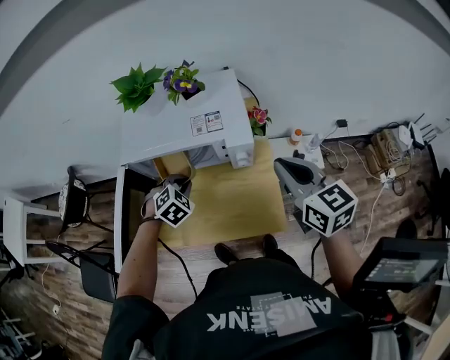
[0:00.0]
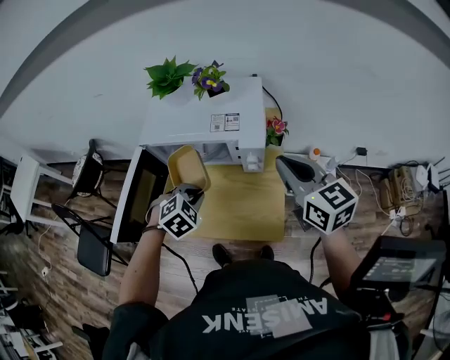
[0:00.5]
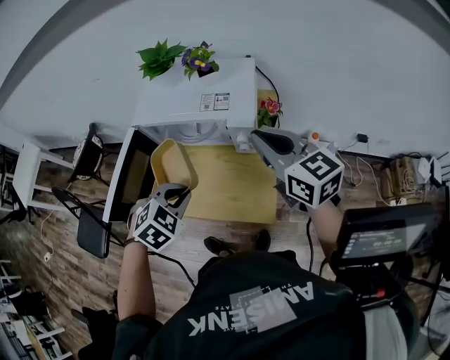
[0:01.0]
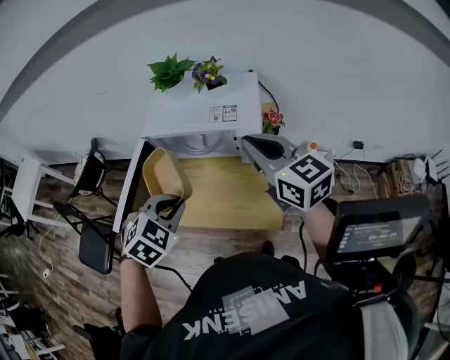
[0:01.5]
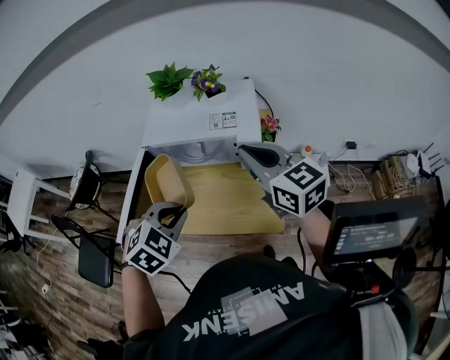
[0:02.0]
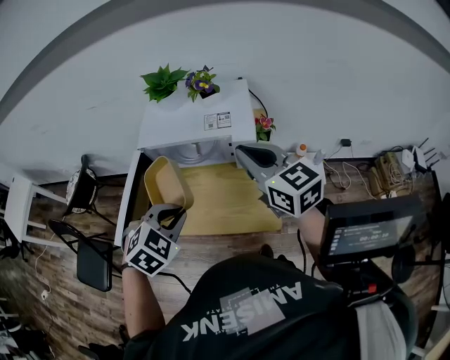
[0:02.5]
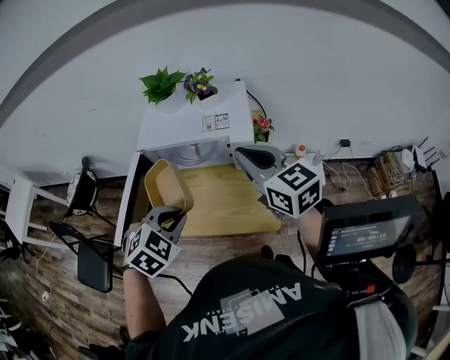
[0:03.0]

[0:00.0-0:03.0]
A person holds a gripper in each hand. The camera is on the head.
0:00.0 to 0:01.5: The right gripper shifts roughly 10 cm upward and to the left, and changes its angle by some 20 degrees; the left gripper goes some 25 cm backward and upward.
0:01.5 to 0:03.0: The grippers move only a little.

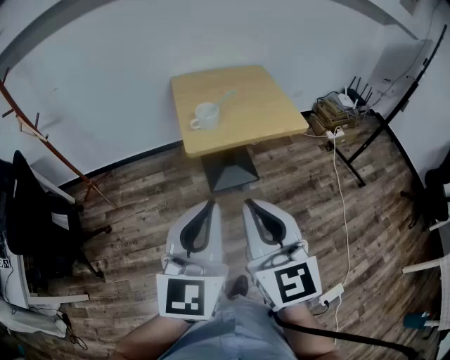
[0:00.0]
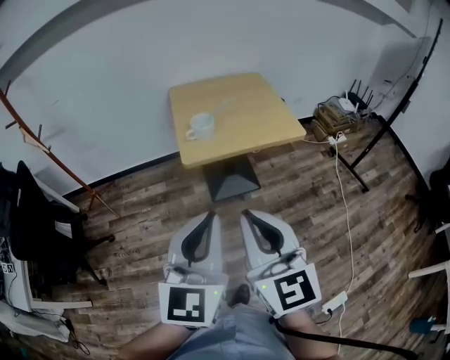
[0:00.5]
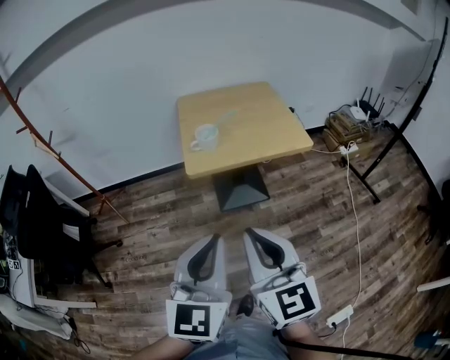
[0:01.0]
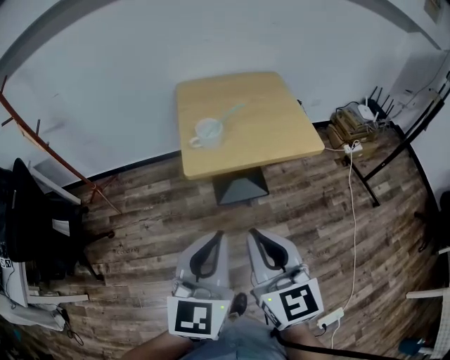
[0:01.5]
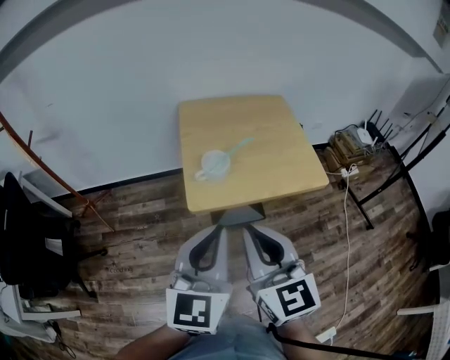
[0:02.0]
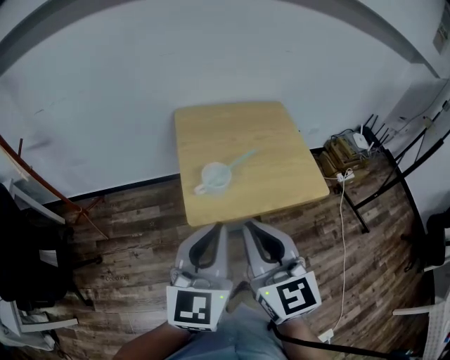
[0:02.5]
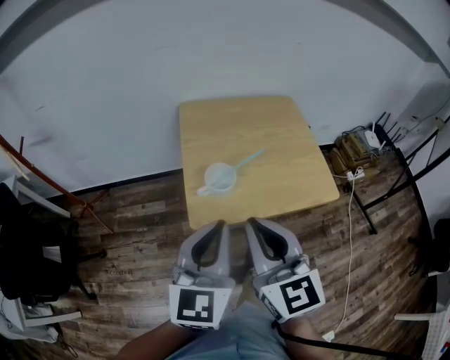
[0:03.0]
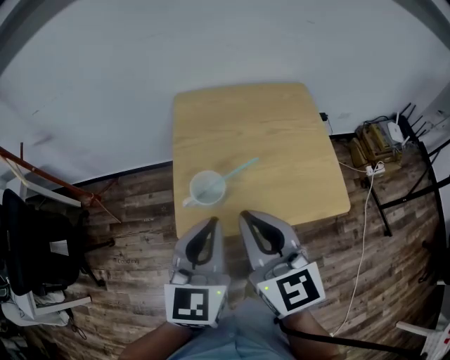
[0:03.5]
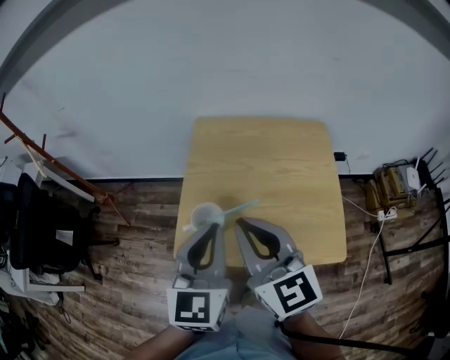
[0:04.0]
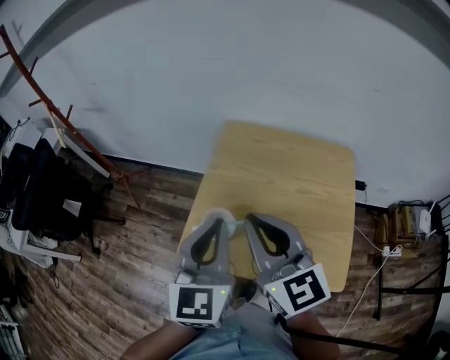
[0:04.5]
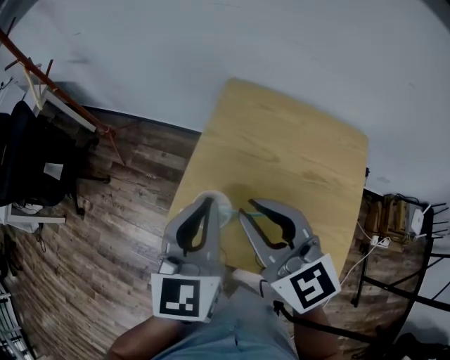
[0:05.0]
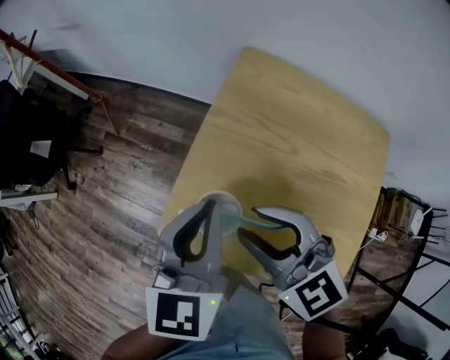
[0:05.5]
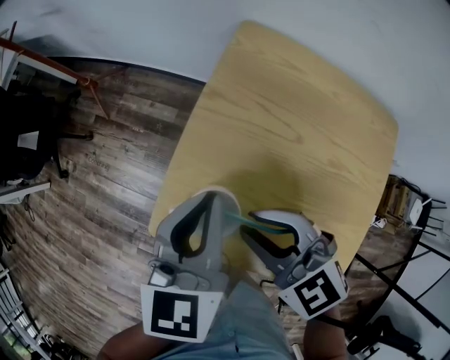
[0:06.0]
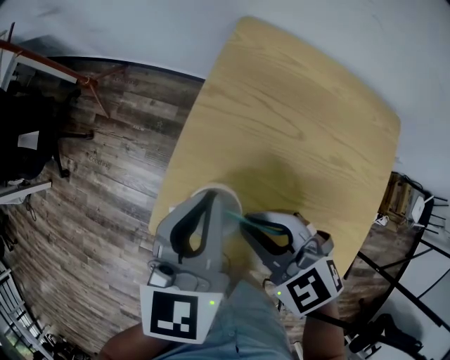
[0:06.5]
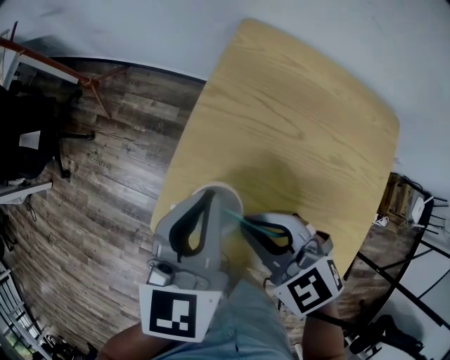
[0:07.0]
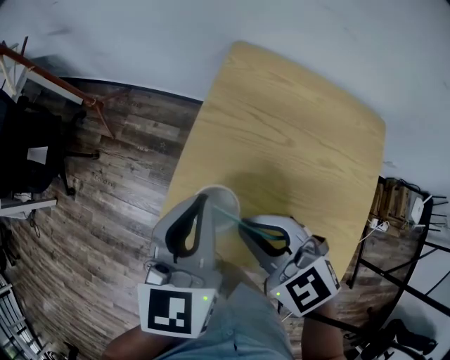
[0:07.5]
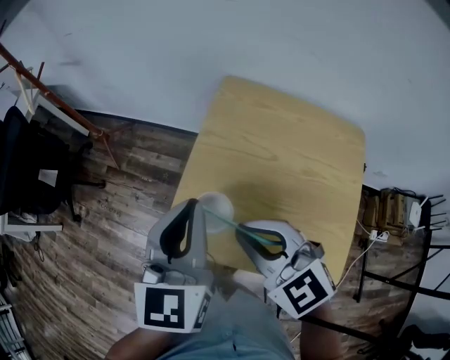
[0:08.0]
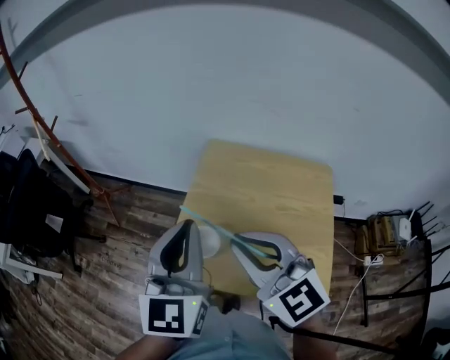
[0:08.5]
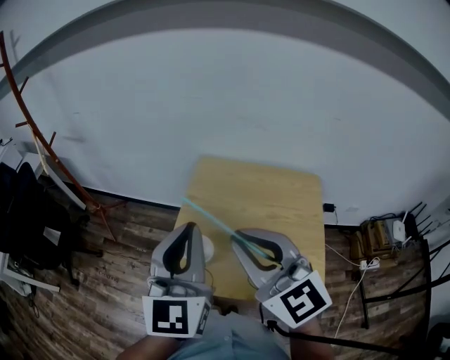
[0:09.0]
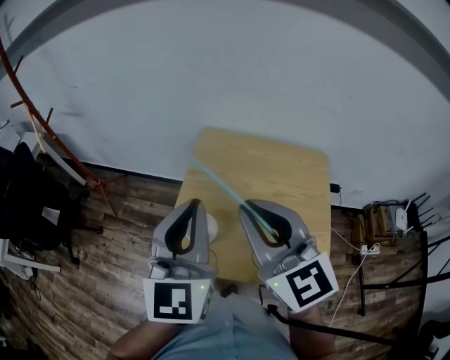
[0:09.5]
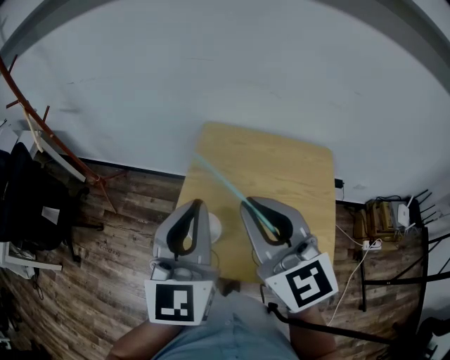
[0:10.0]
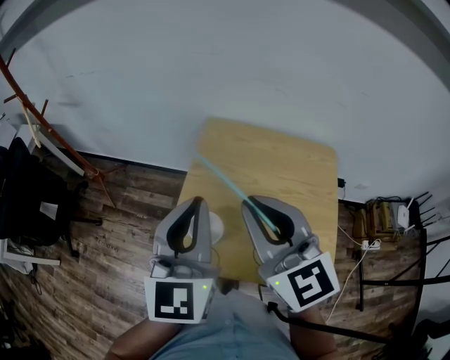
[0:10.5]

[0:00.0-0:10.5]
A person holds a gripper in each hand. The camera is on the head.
0:00.0 to 0:02.0: The two grippers go some 20 cm forward.
0:02.0 to 0:04.0: The right gripper is displaced forward by roughly 25 cm, and swivels approximately 20 degrees, while the left gripper moves forward and to the right, approximately 25 cm, and turns by approximately 20 degrees.
0:04.0 to 0:06.5: The left gripper moves some 20 cm, and rotates some 20 degrees, while the right gripper shifts approximately 20 cm downward, tilts its fingers some 30 degrees downward, and opens and closes again.
0:06.5 to 0:08.5: The two grippers go some 20 cm upward. The left gripper turns by approximately 30 degrees. The right gripper changes its angle by roughly 30 degrees.
0:08.5 to 0:10.5: The right gripper shifts by about 5 cm.

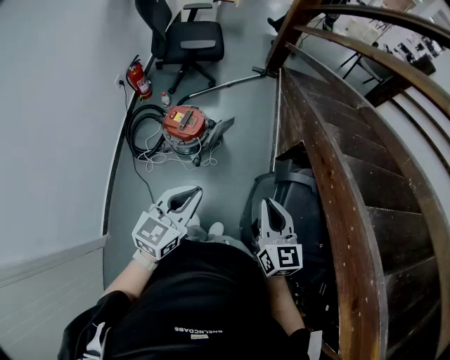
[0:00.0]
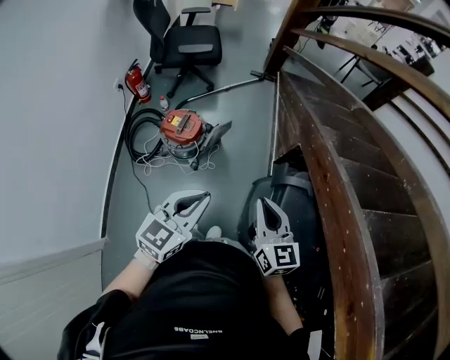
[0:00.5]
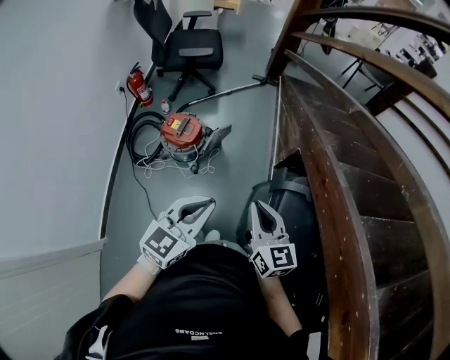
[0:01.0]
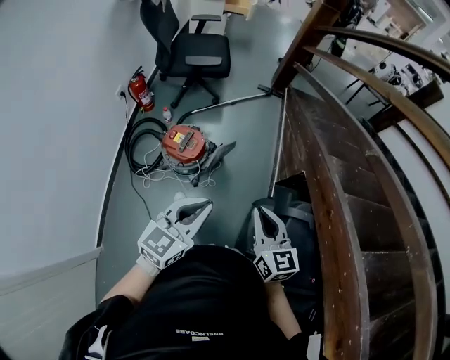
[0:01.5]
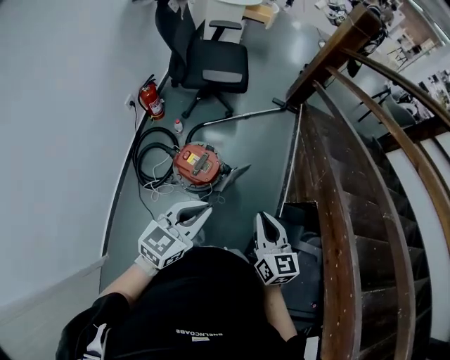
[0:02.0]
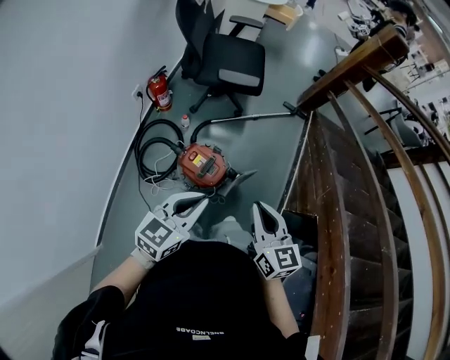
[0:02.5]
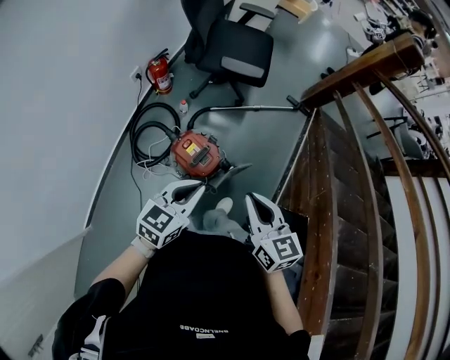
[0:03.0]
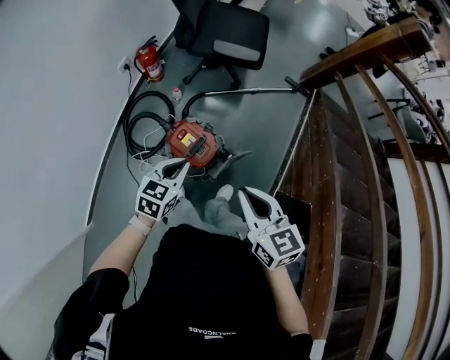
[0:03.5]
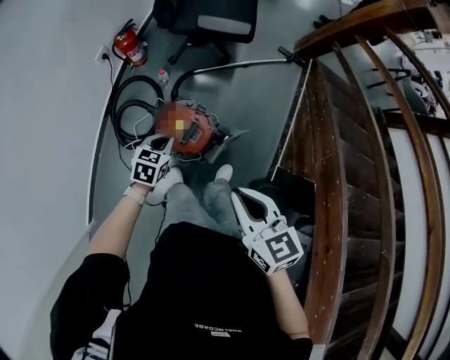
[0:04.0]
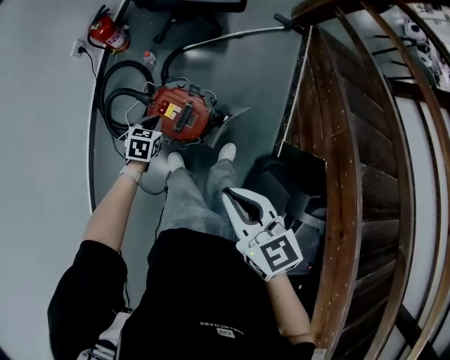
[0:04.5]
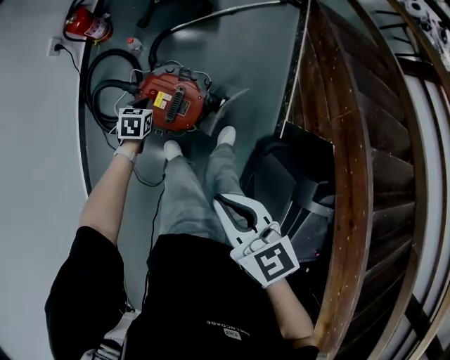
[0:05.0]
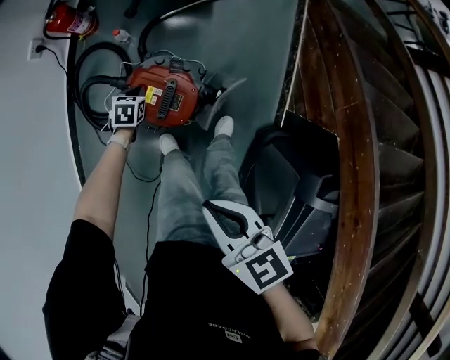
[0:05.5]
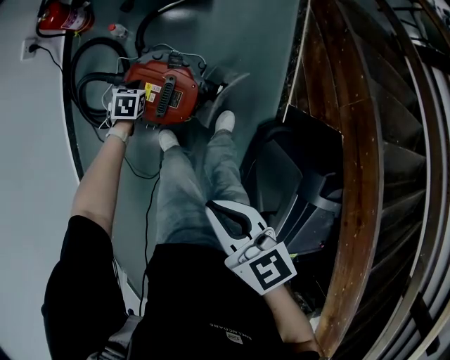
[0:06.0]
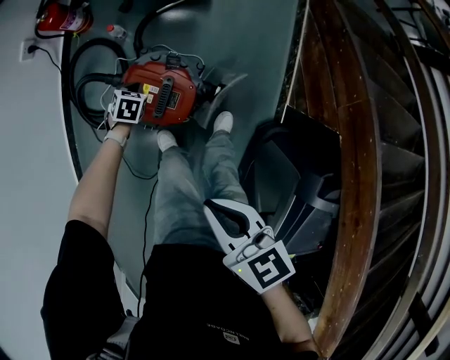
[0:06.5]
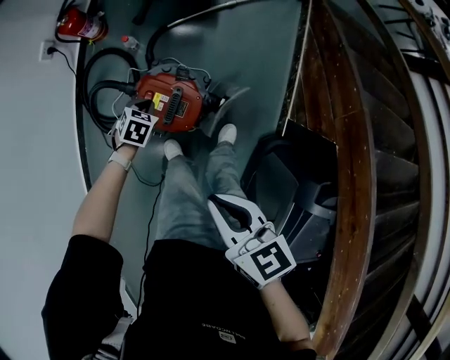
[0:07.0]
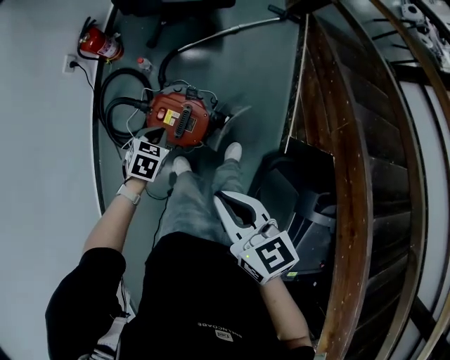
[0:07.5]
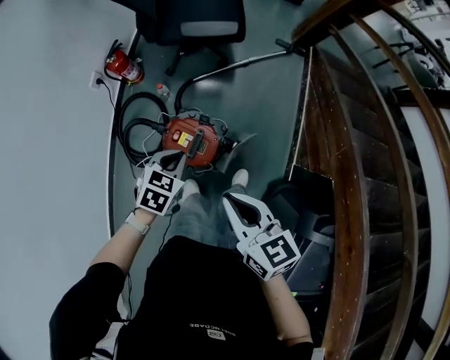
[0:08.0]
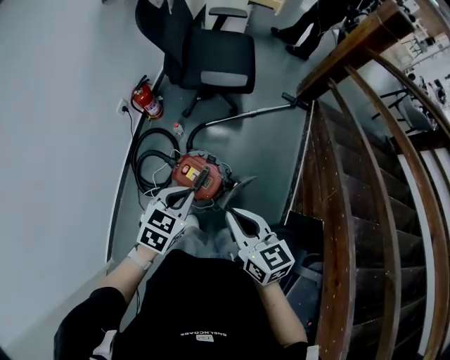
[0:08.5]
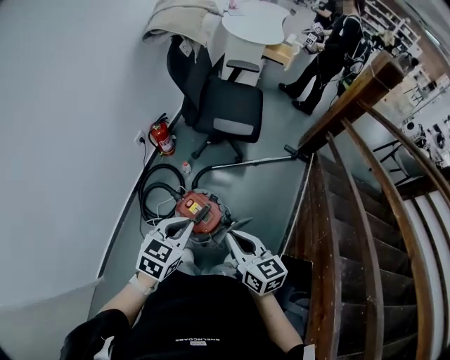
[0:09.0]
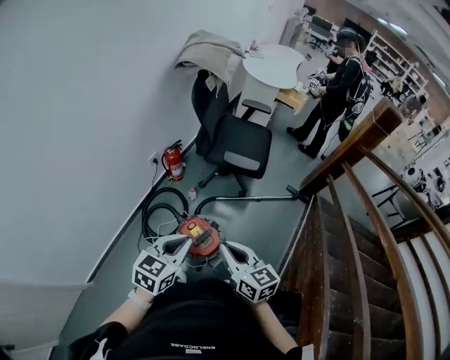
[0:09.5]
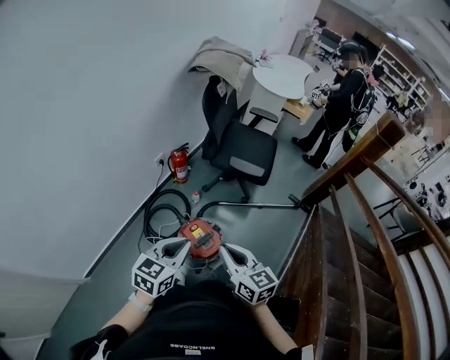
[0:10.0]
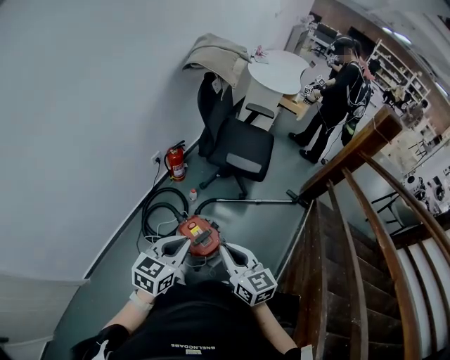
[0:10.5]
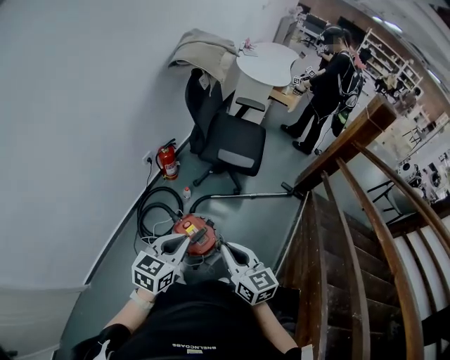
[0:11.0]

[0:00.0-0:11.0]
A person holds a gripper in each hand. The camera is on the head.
0:00.0 to 0:02.0: The two grippers go some 30 cm forward and to the left.
0:02.0 to 0:03.5: The left gripper heads downward, forward and to the left, covering some 25 cm, and swivels roughly 30 degrees, while the right gripper goes approximately 20 cm forward and to the left, and changes its angle by approximately 30 degrees.
0:03.5 to 0:05.5: The right gripper moves downward, roughly 20 cm; the left gripper travels downward by approximately 40 cm, and rotates roughly 30 degrees.
0:05.5 to 0:07.5: The right gripper heads upward, covering approximately 5 cm, while the left gripper moves upward, approximately 20 cm.
0:07.5 to 0:09.0: The right gripper shifts about 15 cm upward, while the left gripper moves upward, about 40 cm, and changes its angle by some 30 degrees.
0:09.0 to 0:11.0: Both grippers move upward, approximately 5 cm.

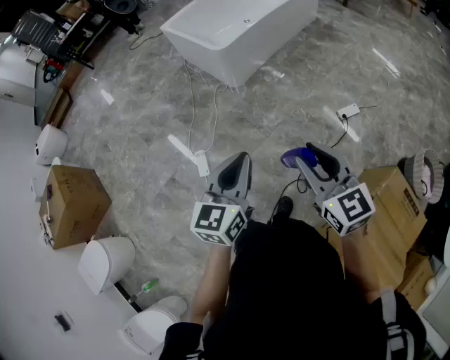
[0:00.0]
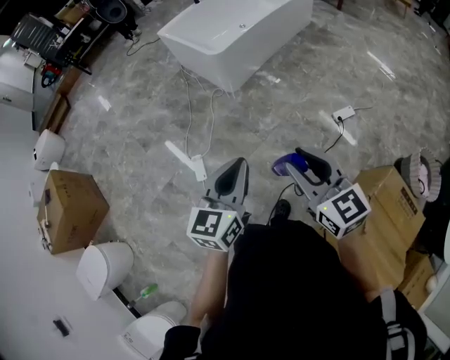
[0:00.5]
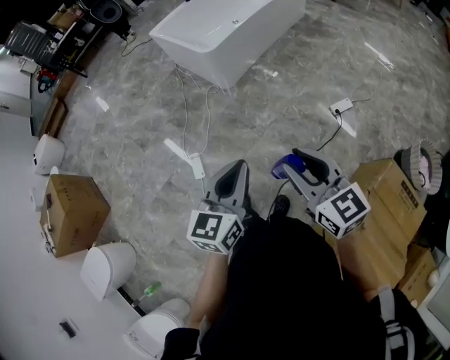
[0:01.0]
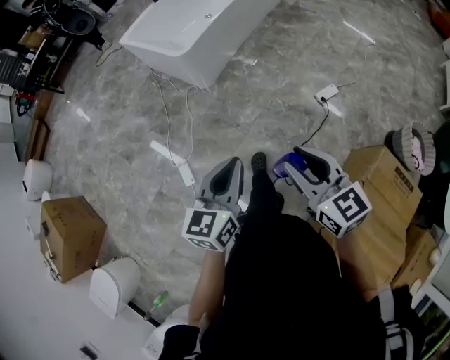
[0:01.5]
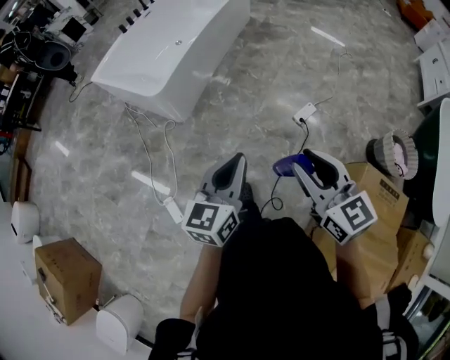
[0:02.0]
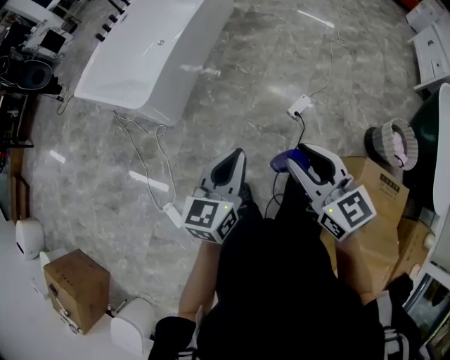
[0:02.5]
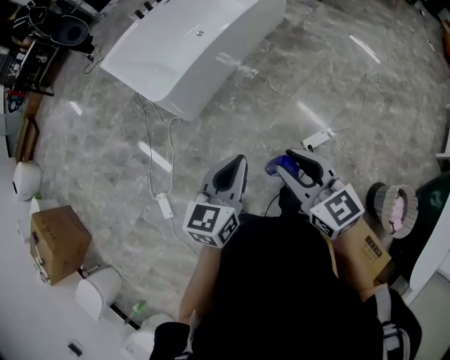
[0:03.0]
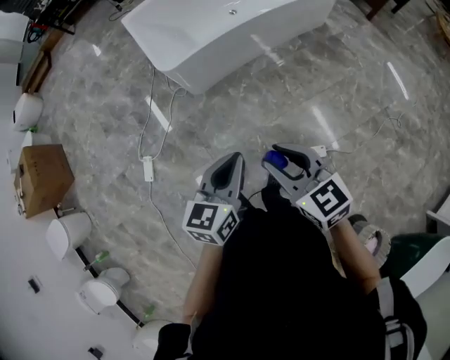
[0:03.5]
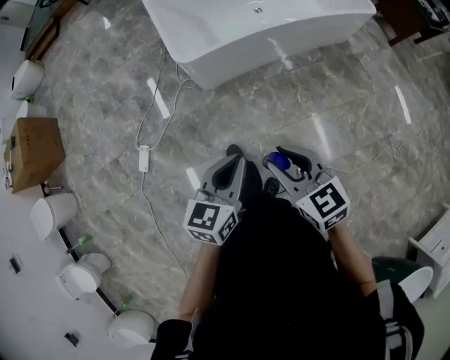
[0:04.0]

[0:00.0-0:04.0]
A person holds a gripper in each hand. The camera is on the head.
0:00.0 to 0:02.0: Both grippers travel together forward and to the right, some 25 cm. The left gripper rotates about 20 degrees.
0:02.0 to 0:04.0: The left gripper moves approximately 30 cm, and turns by roughly 40 degrees; the right gripper changes place by some 35 cm, and changes its angle by some 50 degrees.
